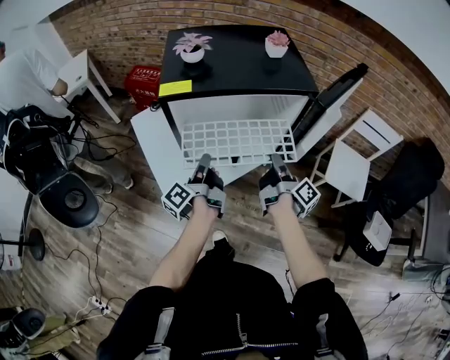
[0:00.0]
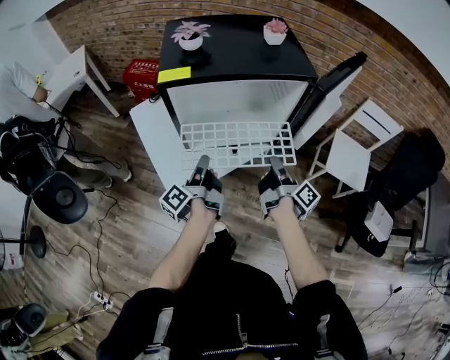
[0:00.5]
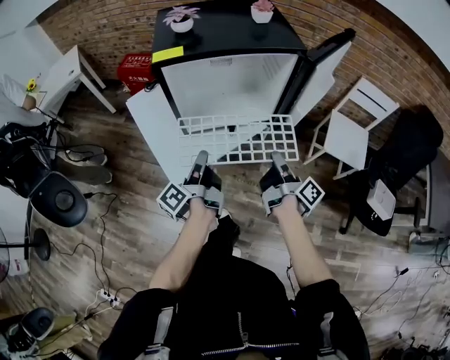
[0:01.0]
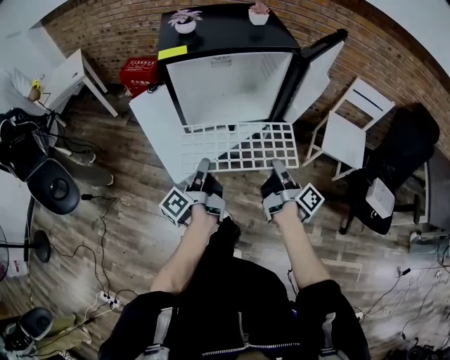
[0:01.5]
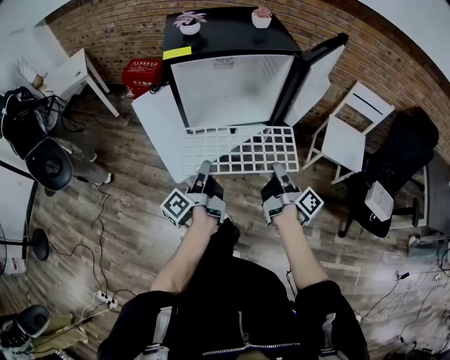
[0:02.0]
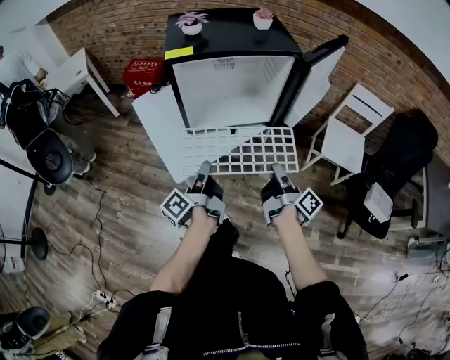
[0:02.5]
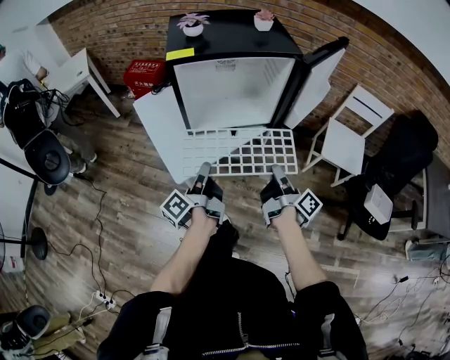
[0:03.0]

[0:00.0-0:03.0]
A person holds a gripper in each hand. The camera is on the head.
0:00.0 to 0:01.5: Both grippers travel together backward, some 15 cm.
0:01.5 to 0:03.0: The two grippers keep their place.

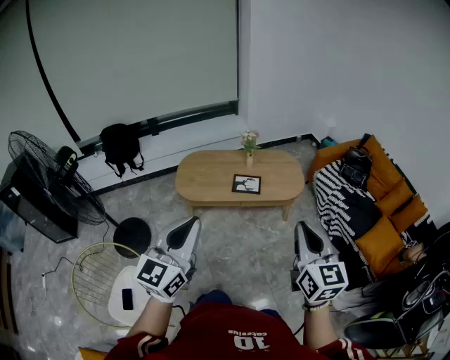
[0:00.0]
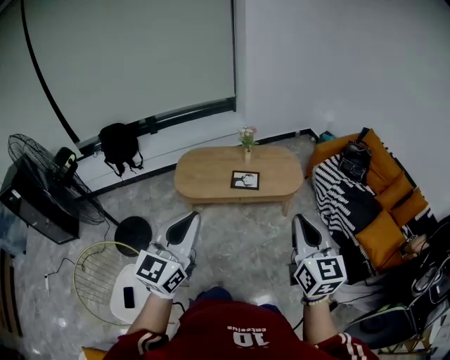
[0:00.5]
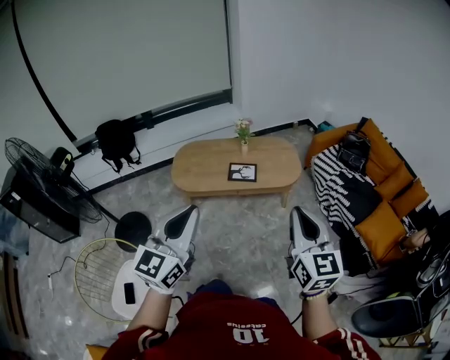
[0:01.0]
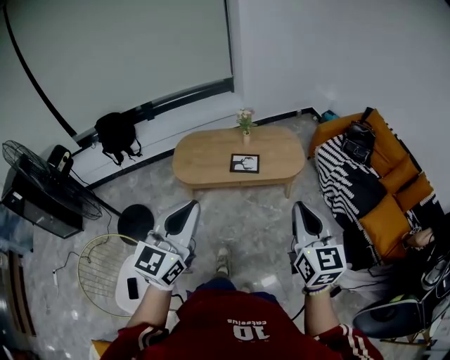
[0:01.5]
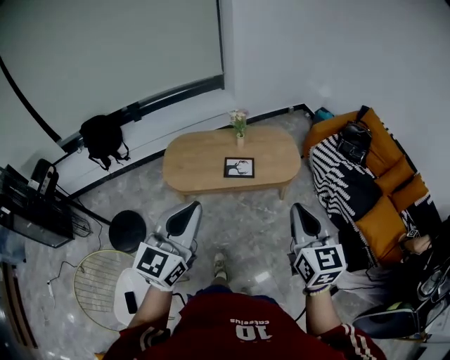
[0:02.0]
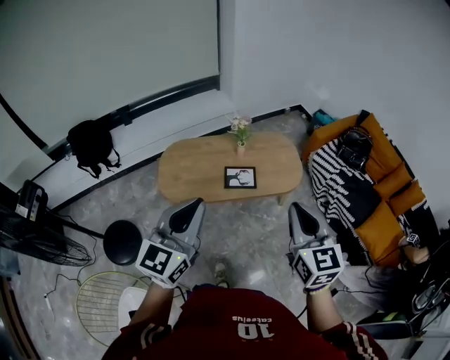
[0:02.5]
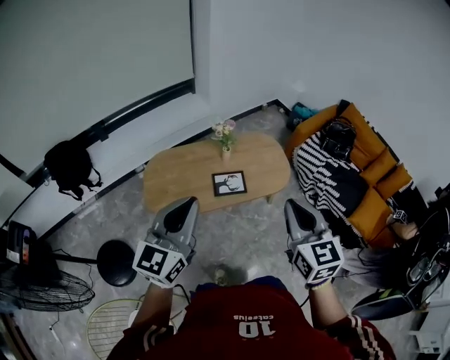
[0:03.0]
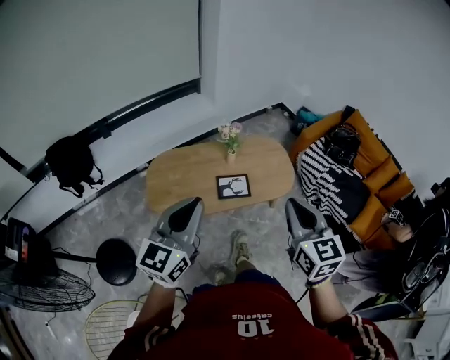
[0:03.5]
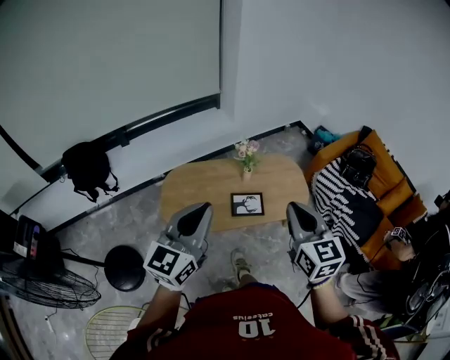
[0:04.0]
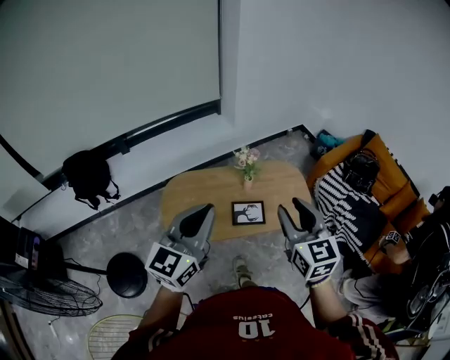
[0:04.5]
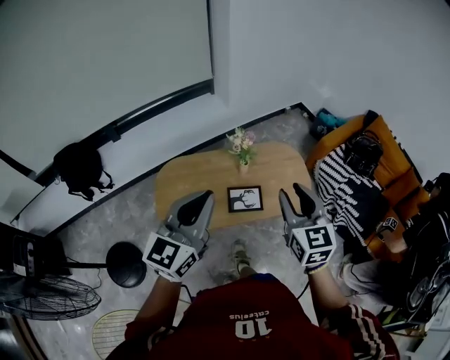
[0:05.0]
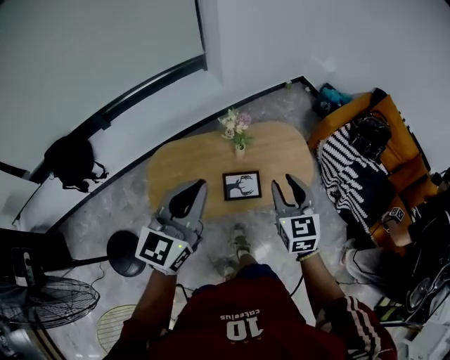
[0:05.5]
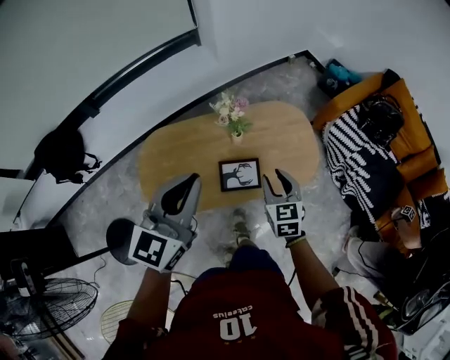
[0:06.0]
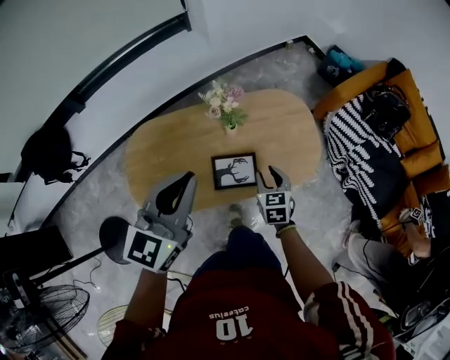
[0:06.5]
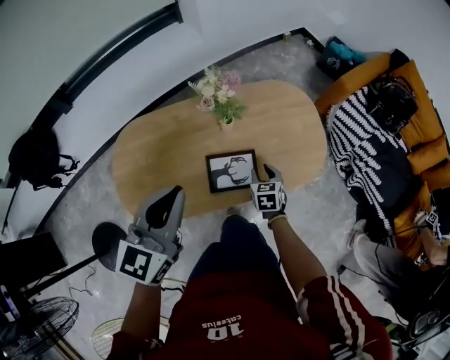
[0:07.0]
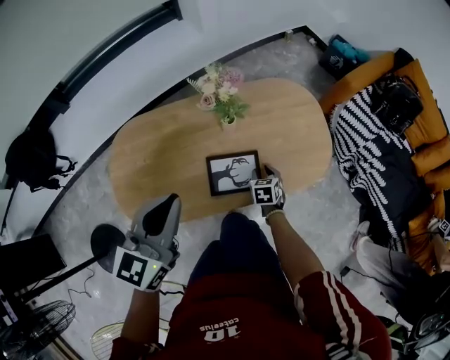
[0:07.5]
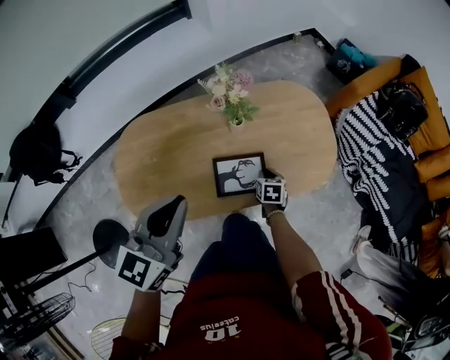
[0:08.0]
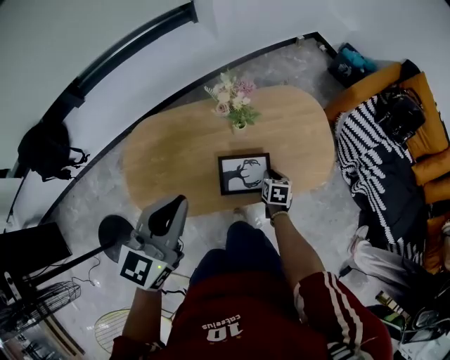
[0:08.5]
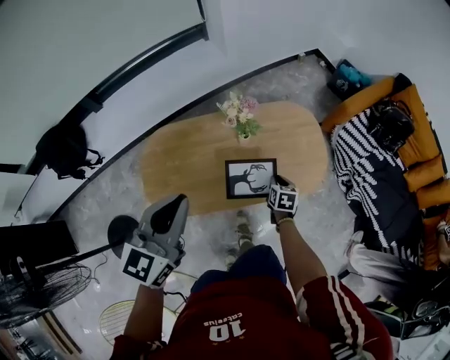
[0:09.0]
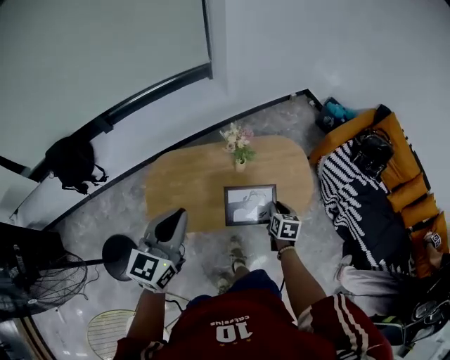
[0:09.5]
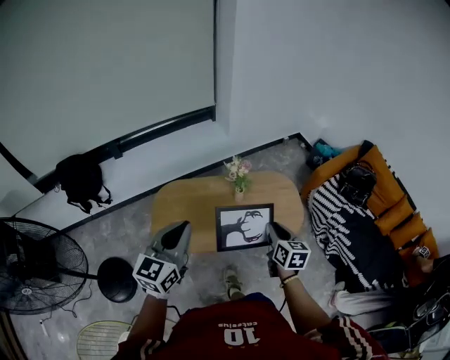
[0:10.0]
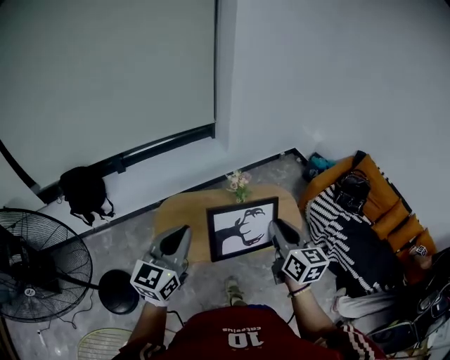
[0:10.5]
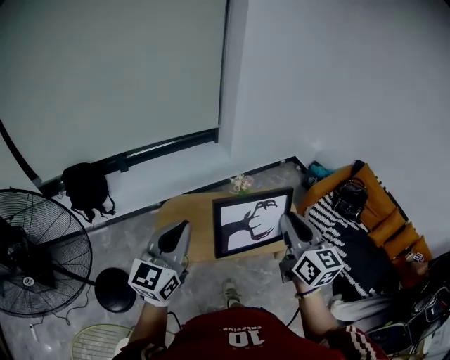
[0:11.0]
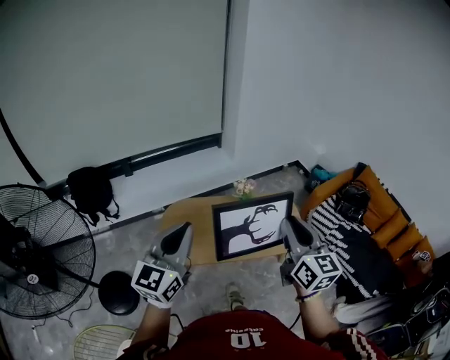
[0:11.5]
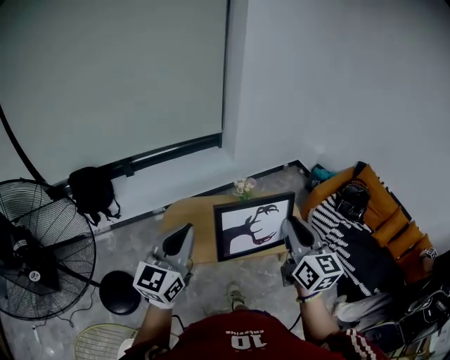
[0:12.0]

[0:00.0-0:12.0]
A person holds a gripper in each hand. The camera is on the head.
0:00.0 to 0:02.0: The two grippers go roughly 10 cm forward.
0:02.0 to 0:04.0: The grippers both shift forward and to the left by roughly 25 cm.
0:04.0 to 0:06.0: The left gripper goes approximately 25 cm forward and downward. Meanwhile the right gripper moves downward and forward, roughly 35 cm, rotates about 20 degrees, and opens.
0:06.0 to 0:08.0: The left gripper shifts about 20 cm downward; the right gripper moves downward, approximately 40 cm, and swivels about 30 degrees.
0:08.0 to 0:10.0: The left gripper goes some 25 cm upward and backward; the right gripper heads upward, covering roughly 50 cm, and points its fingers some 30 degrees further upward.
0:10.0 to 0:12.0: The right gripper is displaced upward and backward by about 30 cm, and rotates approximately 30 degrees, while the left gripper heads upward and backward, covering approximately 15 cm.

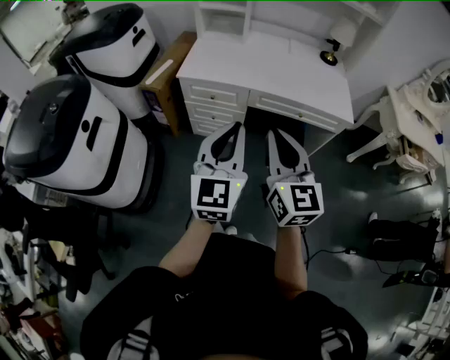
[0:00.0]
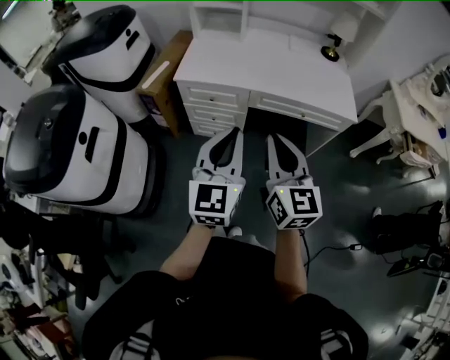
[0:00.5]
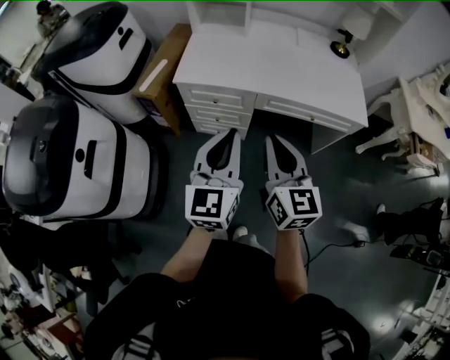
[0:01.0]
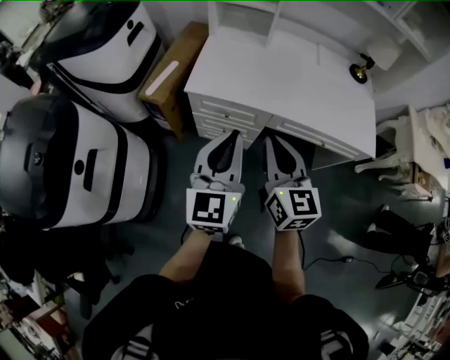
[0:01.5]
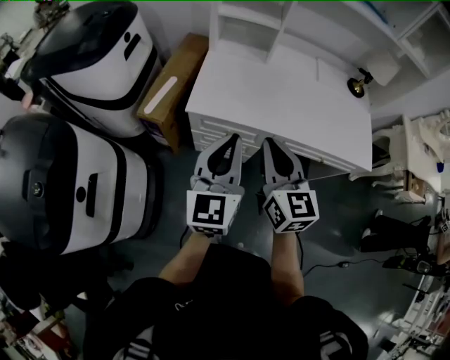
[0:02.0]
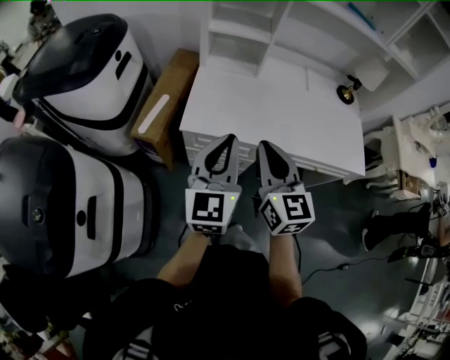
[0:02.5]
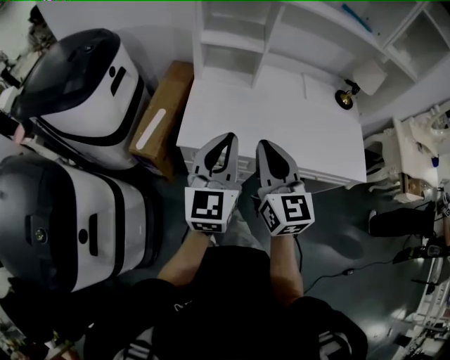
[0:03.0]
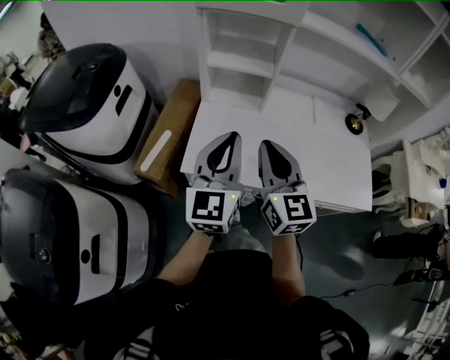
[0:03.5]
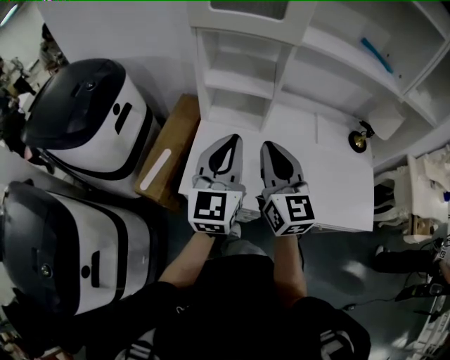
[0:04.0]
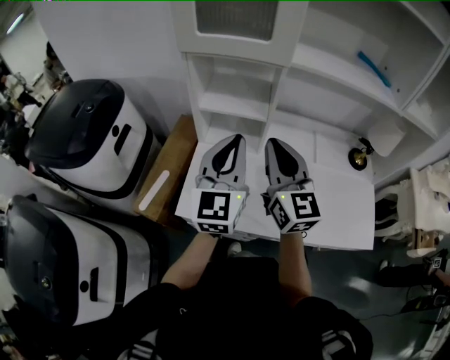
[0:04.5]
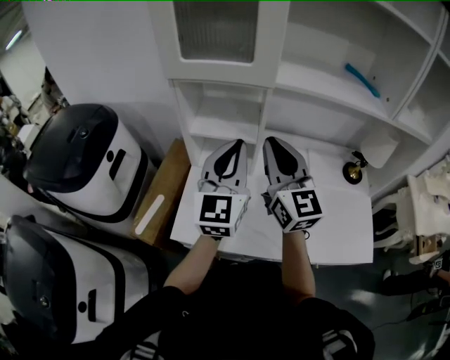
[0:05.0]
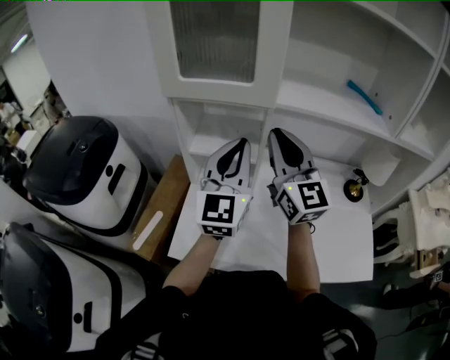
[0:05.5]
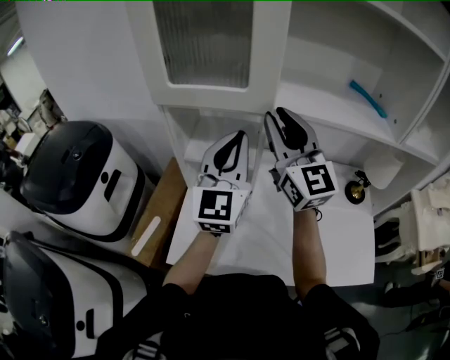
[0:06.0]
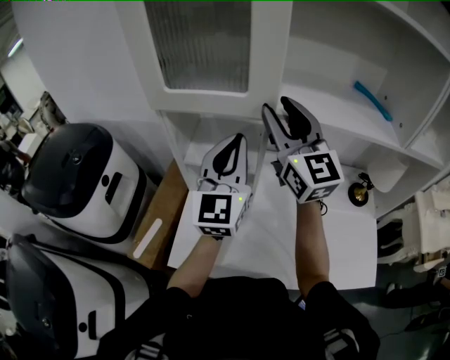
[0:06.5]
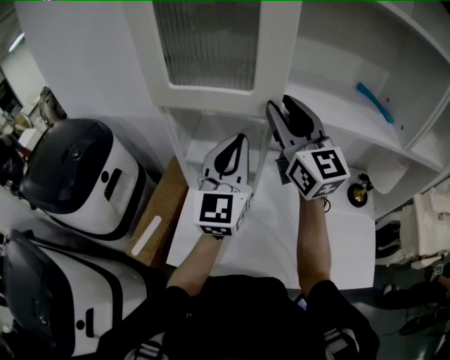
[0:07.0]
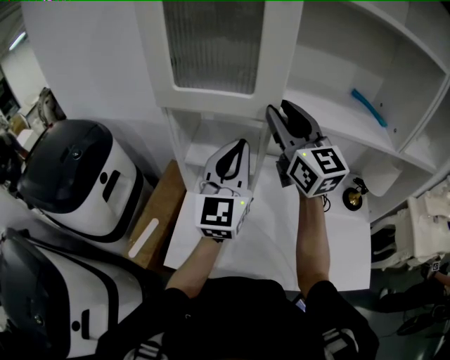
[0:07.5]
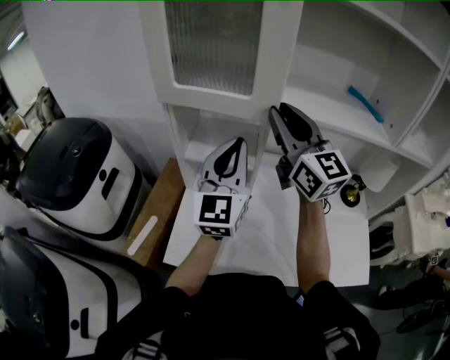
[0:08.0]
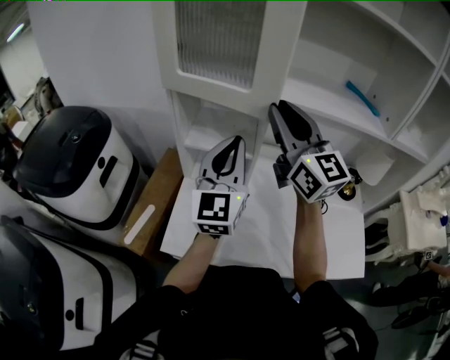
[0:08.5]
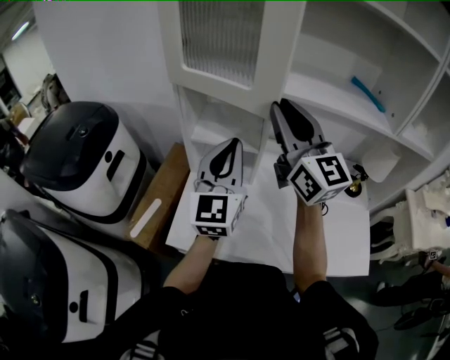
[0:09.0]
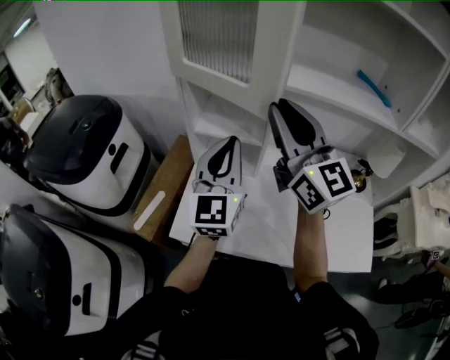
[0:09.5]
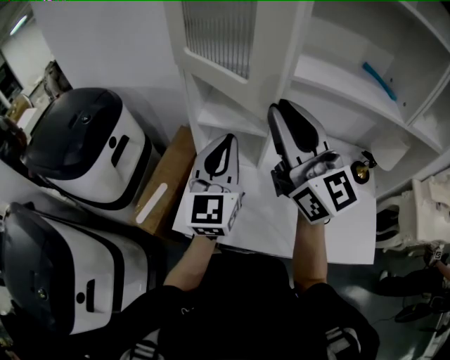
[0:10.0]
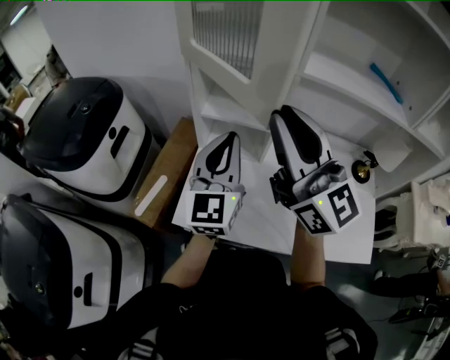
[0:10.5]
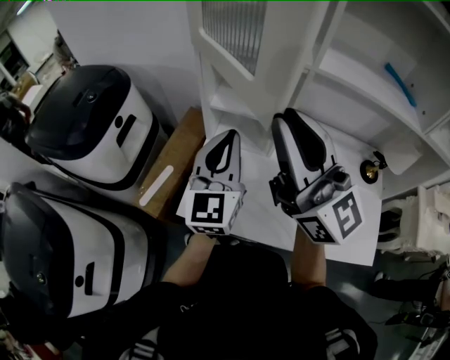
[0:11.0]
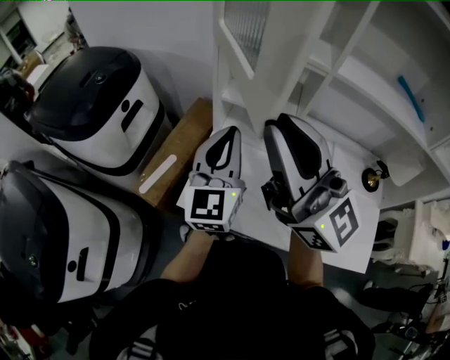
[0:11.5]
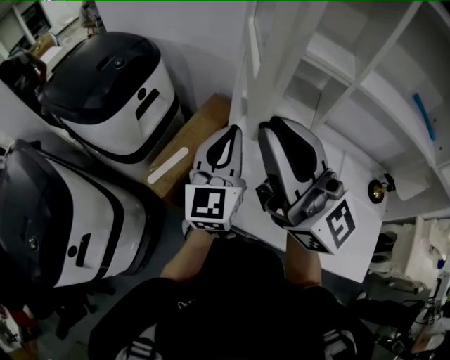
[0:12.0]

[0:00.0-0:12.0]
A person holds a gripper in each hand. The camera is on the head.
0:00.0 to 0:02.0: The two grippers go about 30 cm forward and to the left.
0:02.0 to 0:04.0: Both grippers travel together forward, approximately 25 cm.
0:04.0 to 0:06.0: The right gripper travels forward and upward by about 25 cm, and rotates about 20 degrees. The left gripper goes approximately 25 cm forward, upward and to the right.
0:06.0 to 0:08.0: The grippers make only small movements.
0:08.0 to 0:10.0: The left gripper is displaced to the left and backward by about 10 cm; the right gripper shifts roughly 15 cm backward and to the left.
0:10.0 to 0:12.0: The grippers both shift to the left by some 10 cm. The right gripper changes its angle by some 30 degrees.
